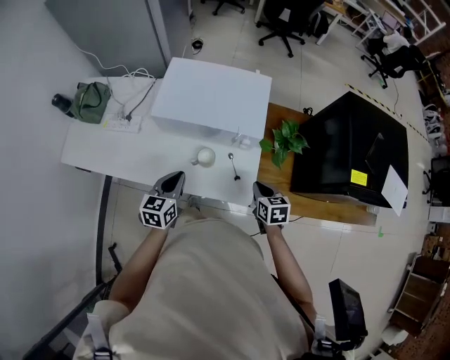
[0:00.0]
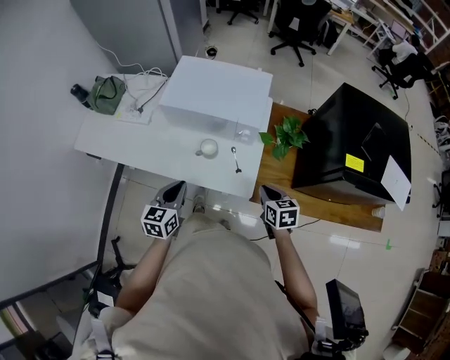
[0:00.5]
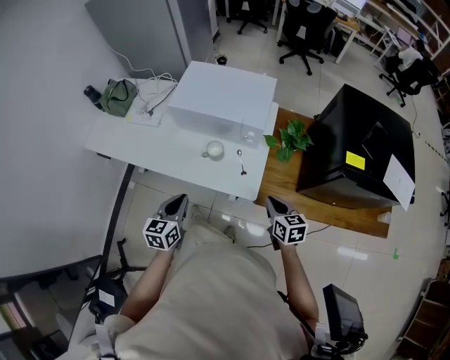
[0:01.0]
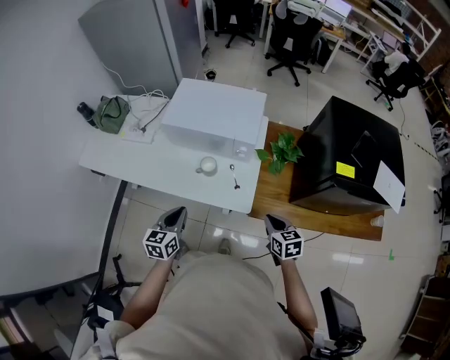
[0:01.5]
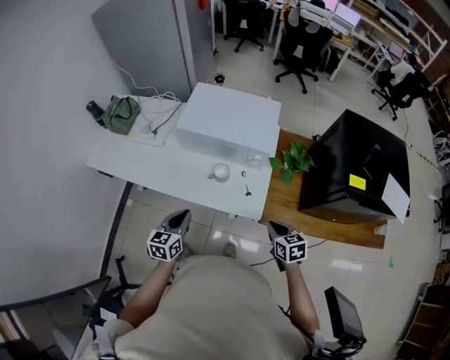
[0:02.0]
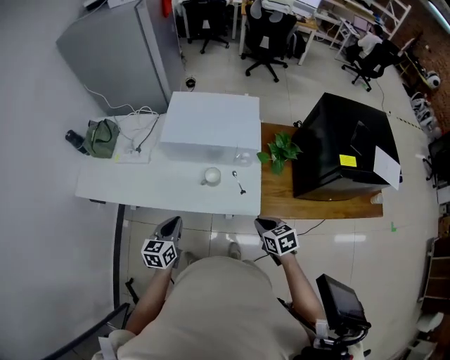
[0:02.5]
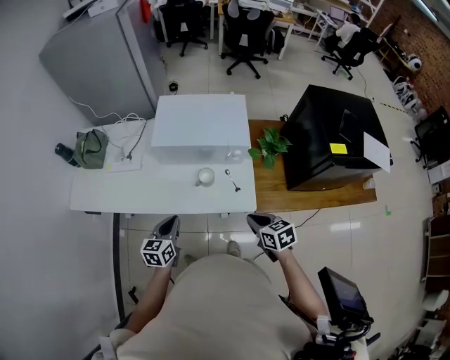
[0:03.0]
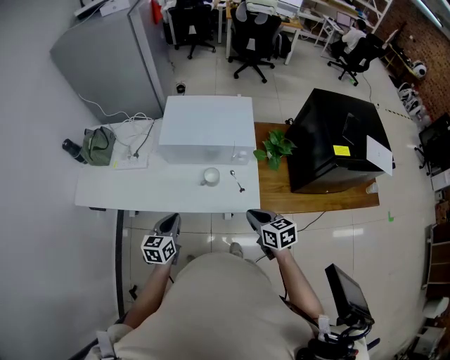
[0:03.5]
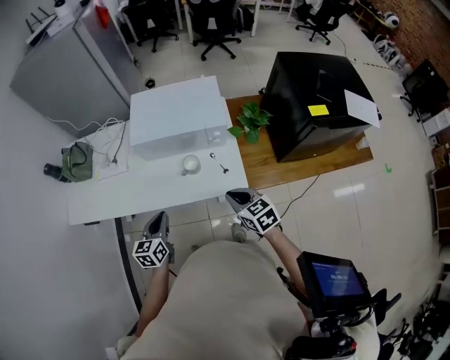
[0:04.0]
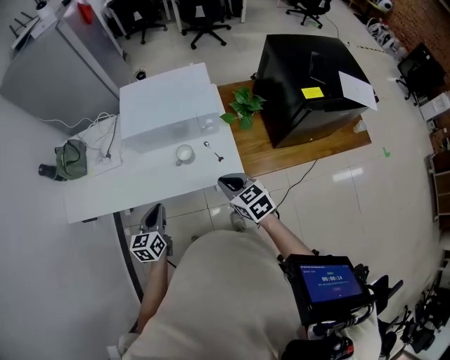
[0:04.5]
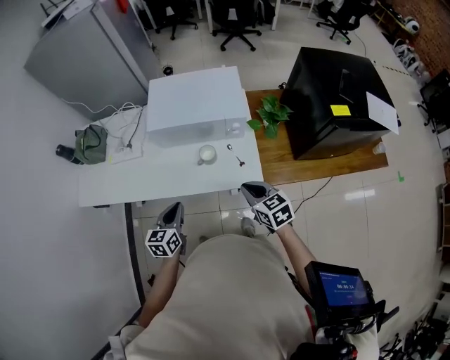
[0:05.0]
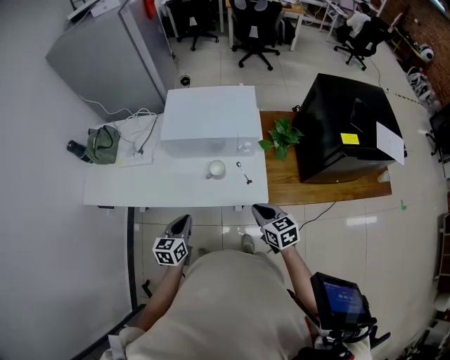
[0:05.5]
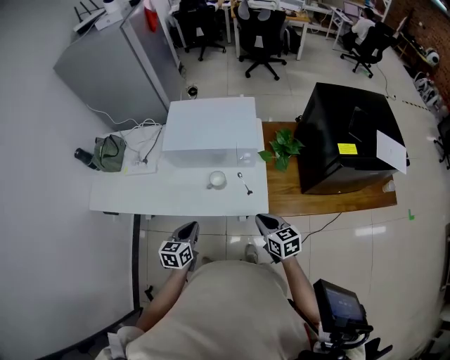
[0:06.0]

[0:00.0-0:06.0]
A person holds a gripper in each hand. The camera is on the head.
0:00.0 to 0:02.0: The two grippers go approximately 15 cm backward.
0:02.0 to 0:04.0: The left gripper travels to the left by approximately 5 cm. The right gripper is displaced to the left and upward by roughly 15 cm.
0:04.0 to 0:06.0: The grippers both shift to the right by approximately 5 cm.

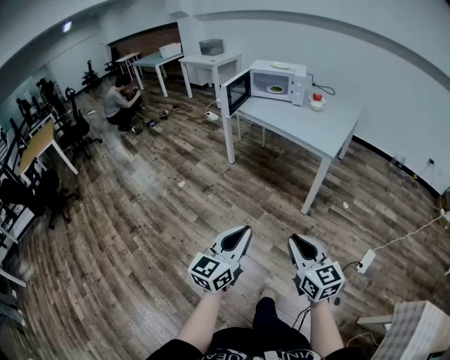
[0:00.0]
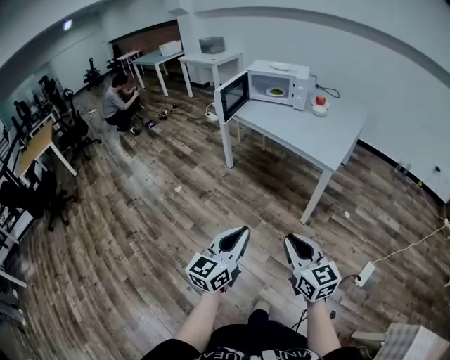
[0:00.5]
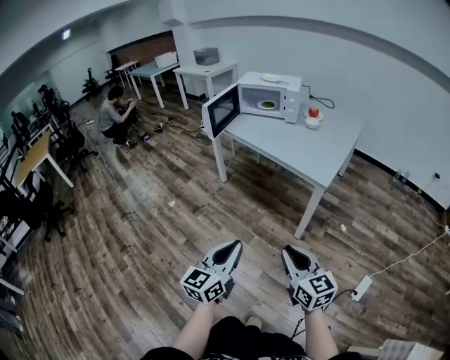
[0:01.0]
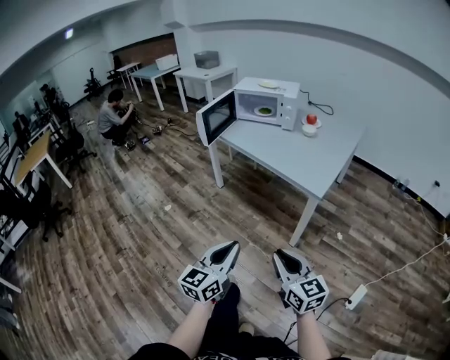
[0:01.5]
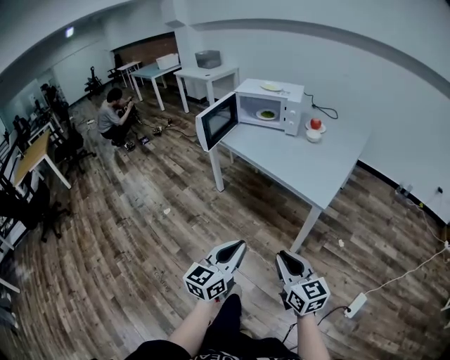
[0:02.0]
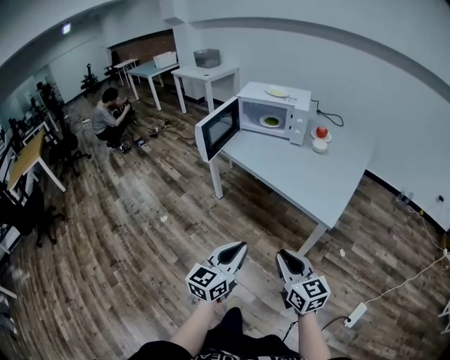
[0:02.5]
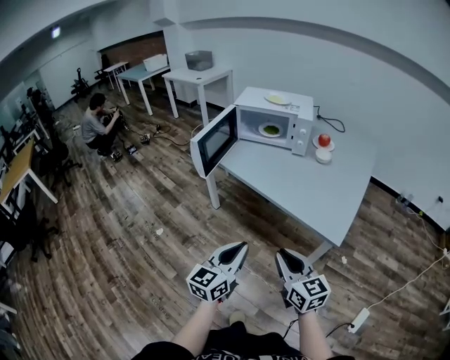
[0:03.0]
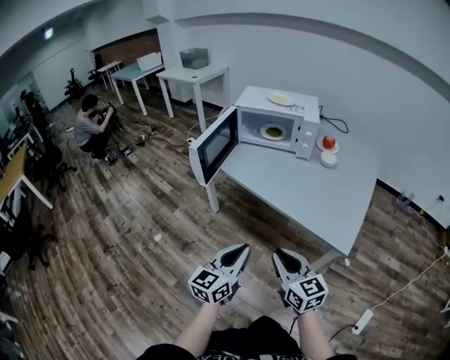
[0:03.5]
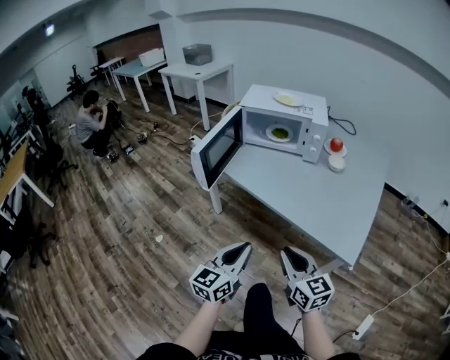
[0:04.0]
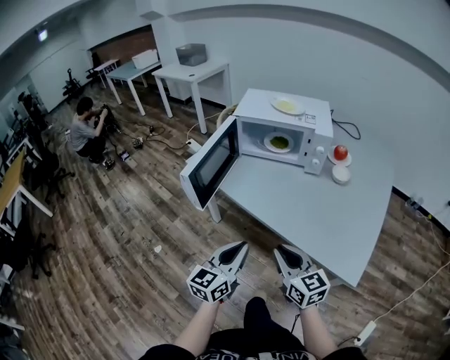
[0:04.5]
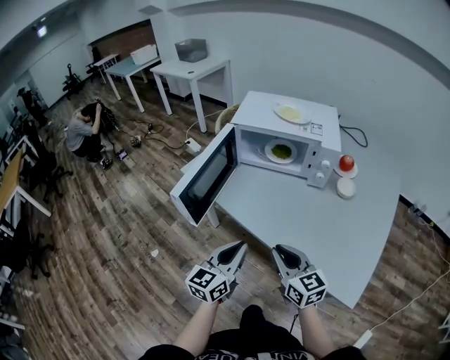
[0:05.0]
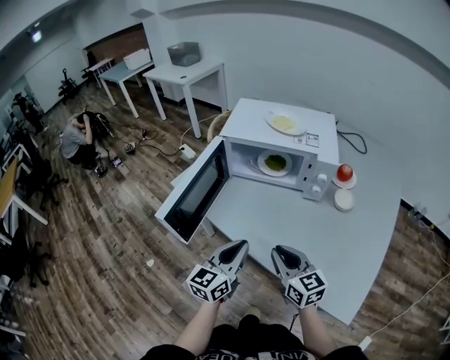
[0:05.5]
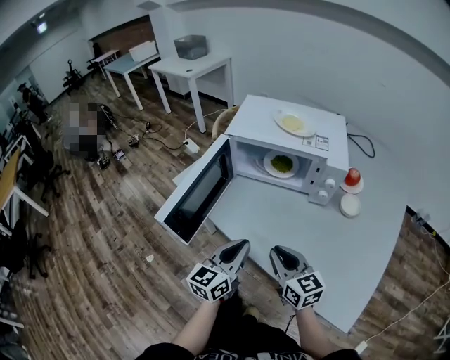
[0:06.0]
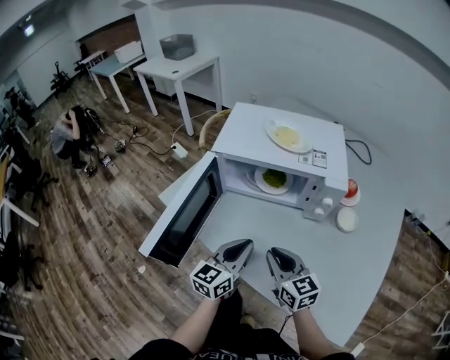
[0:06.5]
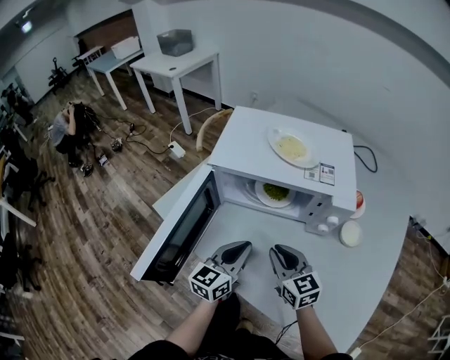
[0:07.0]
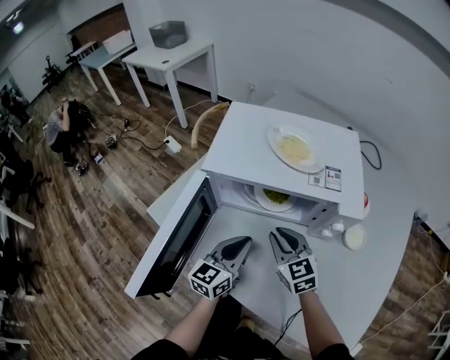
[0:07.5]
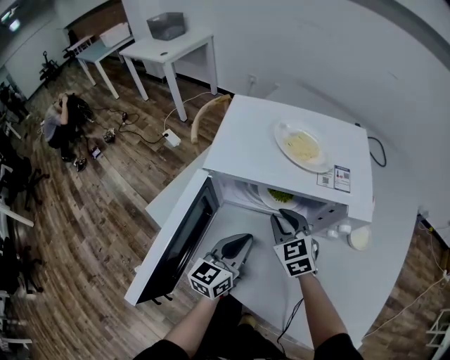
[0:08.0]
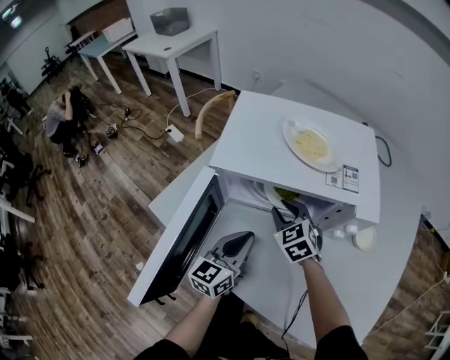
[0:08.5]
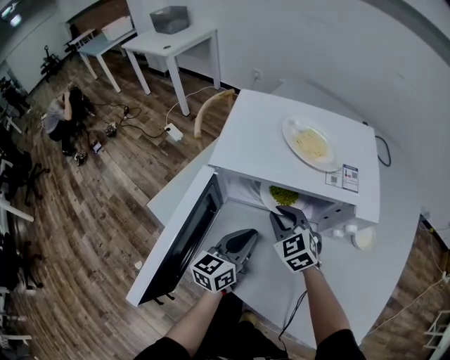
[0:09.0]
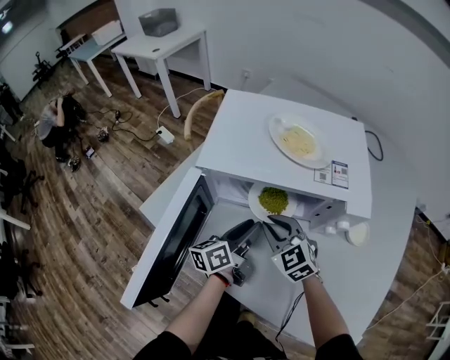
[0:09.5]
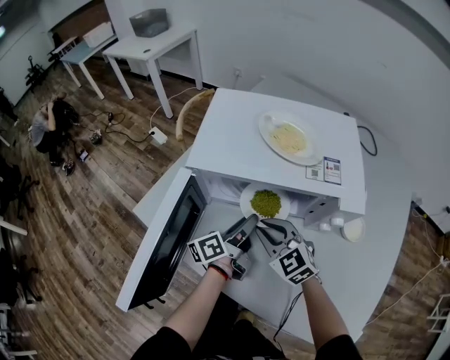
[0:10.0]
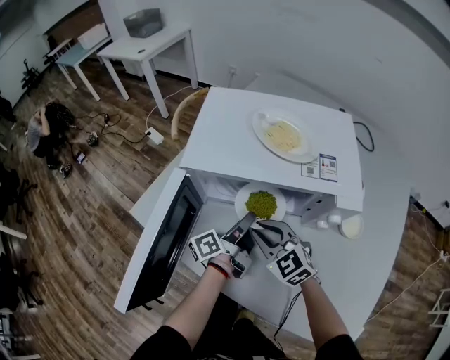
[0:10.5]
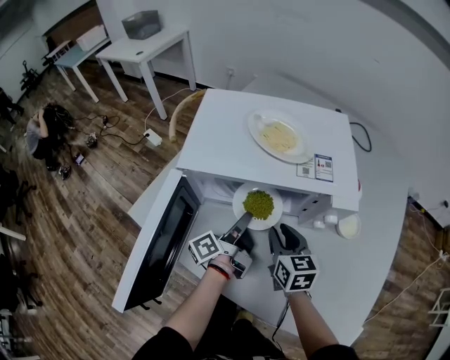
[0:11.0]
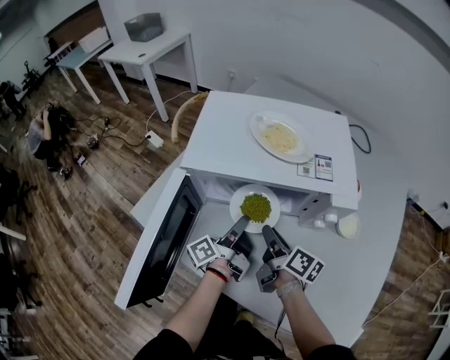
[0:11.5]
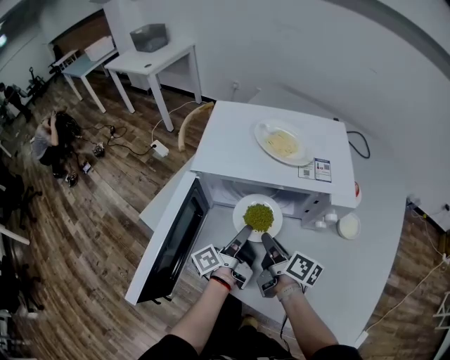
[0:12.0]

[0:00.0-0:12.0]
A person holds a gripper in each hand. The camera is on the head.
0:00.0 to 0:02.0: The right gripper goes roughly 25 cm forward, while the left gripper travels forward and to the right by about 30 cm.
0:02.0 to 0:04.0: The grippers both shift forward by some 30 cm.
0:04.0 to 0:06.0: The two grippers go approximately 30 cm forward.
0:06.0 to 0:08.0: Both grippers travel together forward, approximately 25 cm. The right gripper swivels about 30 degrees.
0:08.0 to 0:10.0: The right gripper moves backward, some 5 cm. The left gripper moves forward, approximately 5 cm, twists roughly 50 degrees counterclockwise, seen from behind, and opens its fingers.
0:10.0 to 0:12.0: The right gripper rolls clockwise, seen from behind, by some 90 degrees, while the left gripper changes its angle by some 20 degrees, and closes up.

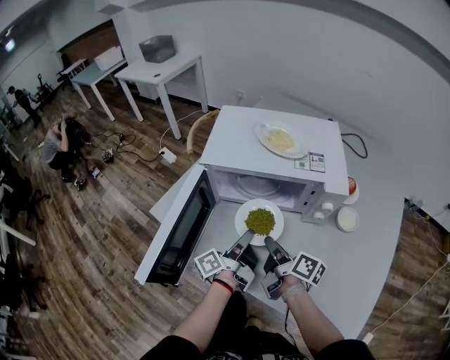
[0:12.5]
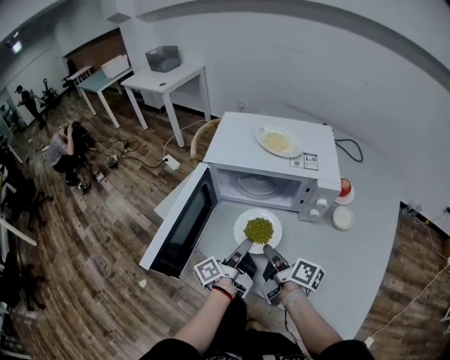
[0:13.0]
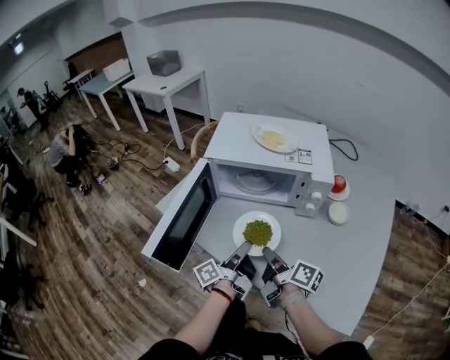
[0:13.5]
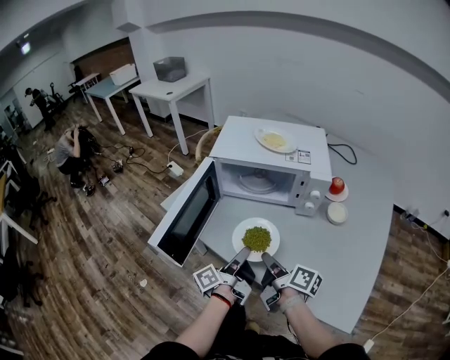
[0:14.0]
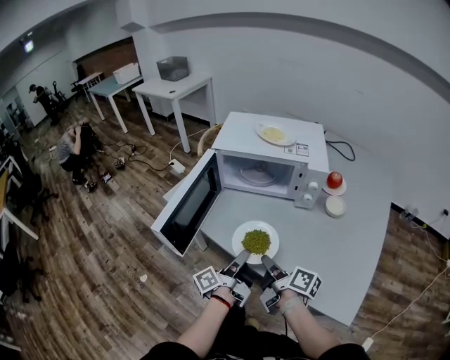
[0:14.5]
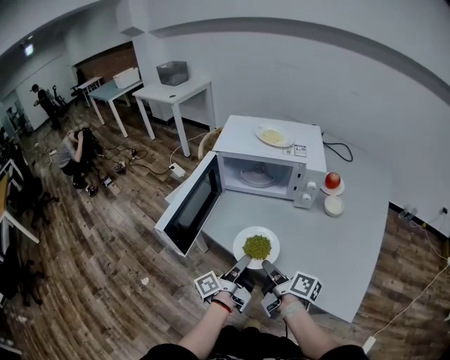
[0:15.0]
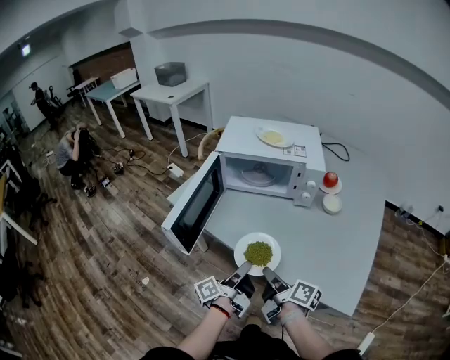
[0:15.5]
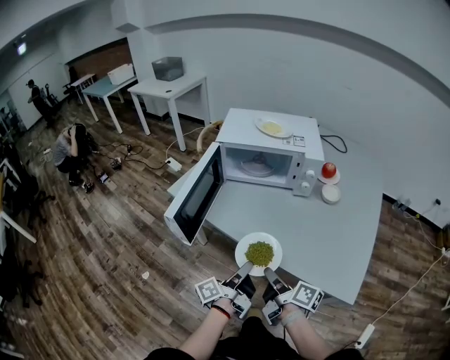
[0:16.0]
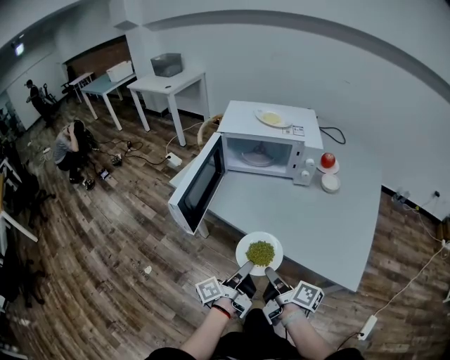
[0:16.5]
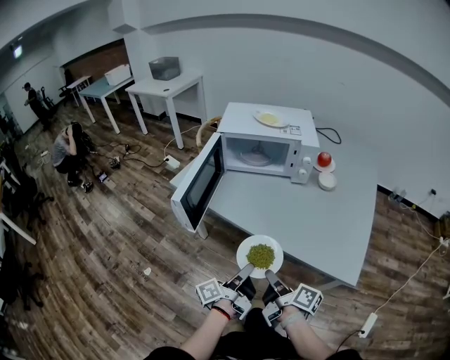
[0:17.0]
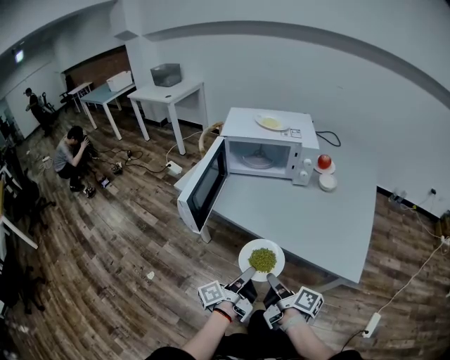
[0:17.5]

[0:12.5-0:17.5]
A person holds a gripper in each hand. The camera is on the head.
0:12.5 to 0:15.0: The two grippers go some 20 cm backward.
0:15.0 to 0:17.5: Both grippers move backward, roughly 15 cm.

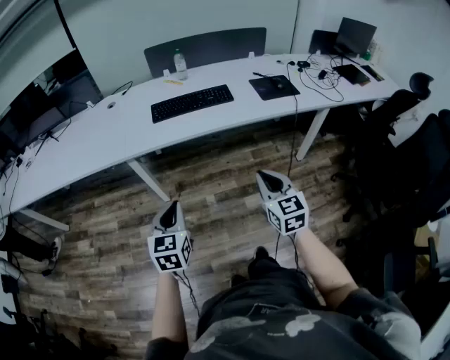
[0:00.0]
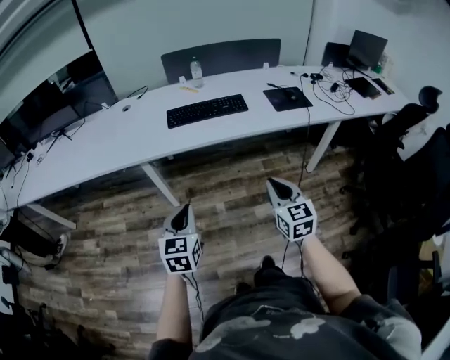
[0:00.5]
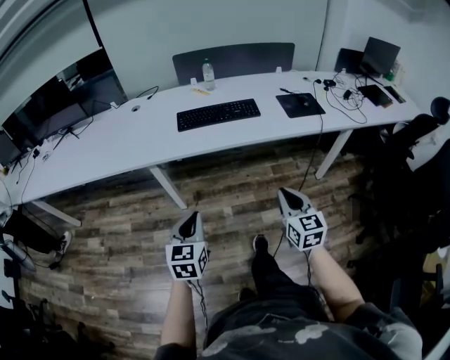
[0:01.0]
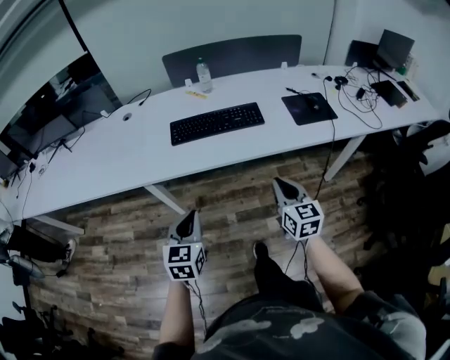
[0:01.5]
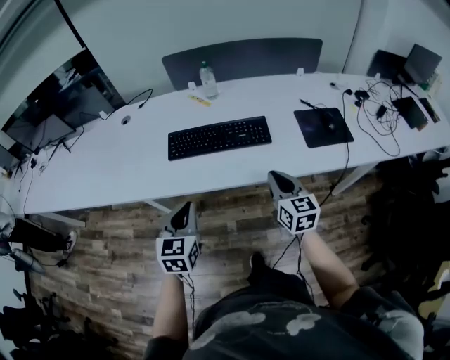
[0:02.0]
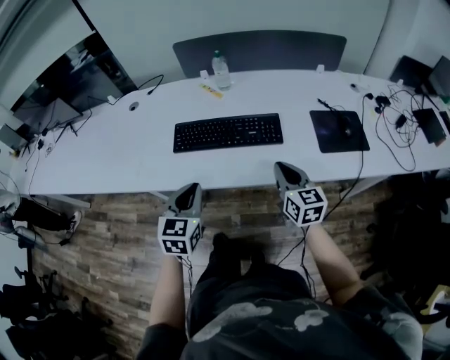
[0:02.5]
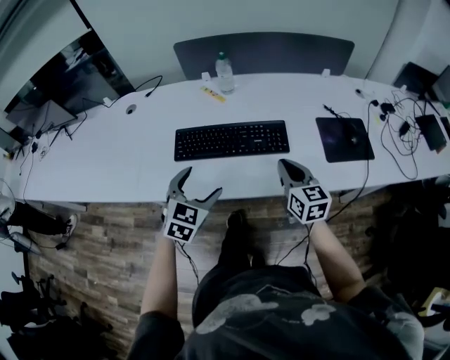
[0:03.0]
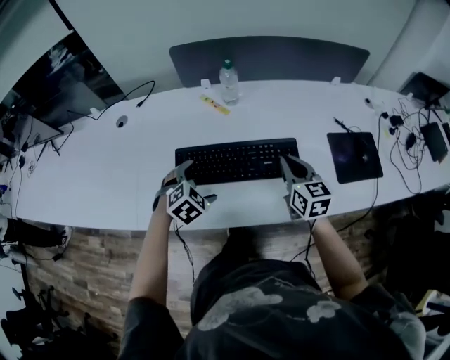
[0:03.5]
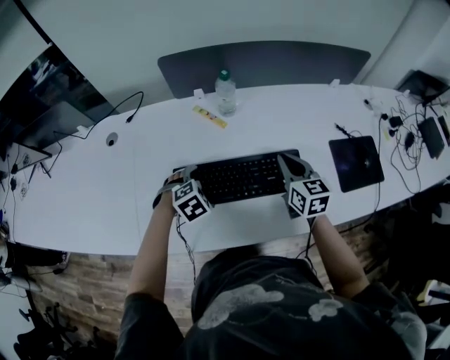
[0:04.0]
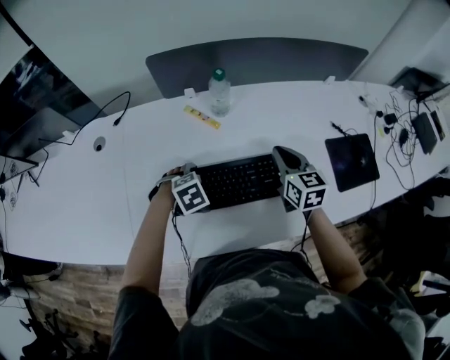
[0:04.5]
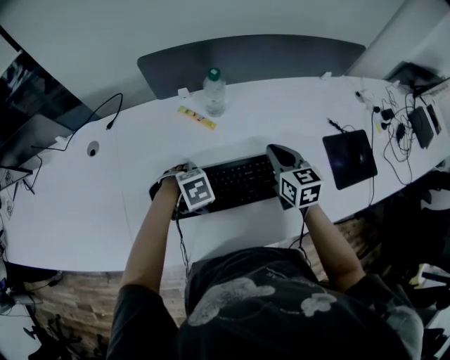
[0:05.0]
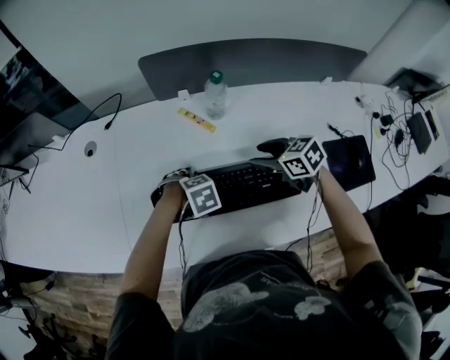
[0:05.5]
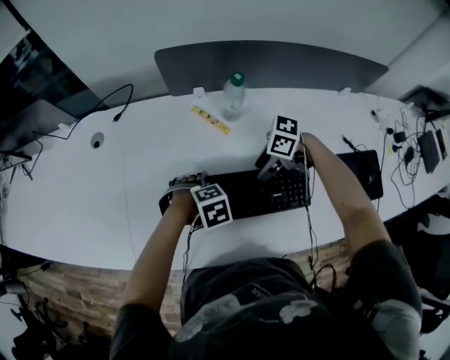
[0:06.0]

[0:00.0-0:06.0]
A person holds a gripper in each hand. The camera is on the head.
0:00.0 to 0:02.0: The two grippers go approximately 30 cm forward.
0:02.0 to 0:04.0: The left gripper moves forward and downward, about 35 cm, points its fingers roughly 50 degrees further downward, and opens up. The right gripper shifts some 30 cm forward.
0:04.0 to 0:06.0: The left gripper swivels about 20 degrees. Meanwhile the right gripper heads downward, covering roughly 10 cm, swivels approximately 90 degrees, and opens up.
